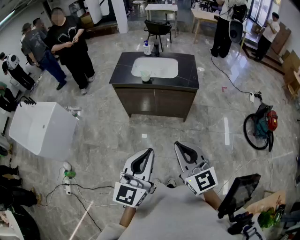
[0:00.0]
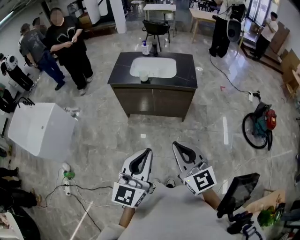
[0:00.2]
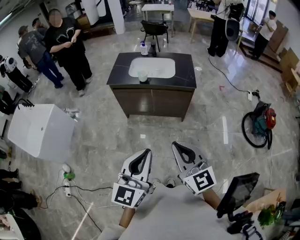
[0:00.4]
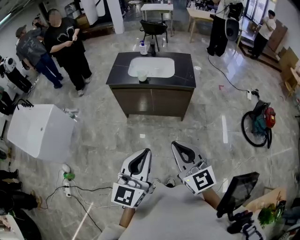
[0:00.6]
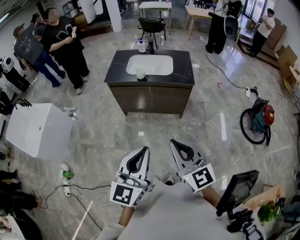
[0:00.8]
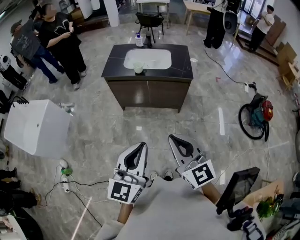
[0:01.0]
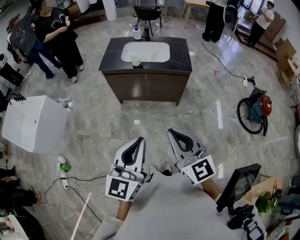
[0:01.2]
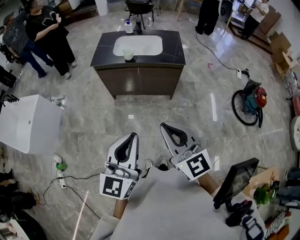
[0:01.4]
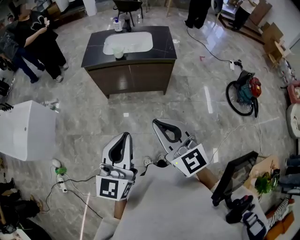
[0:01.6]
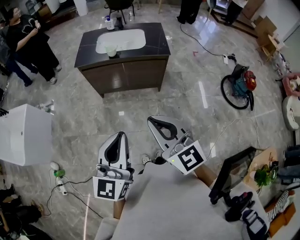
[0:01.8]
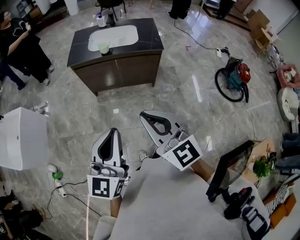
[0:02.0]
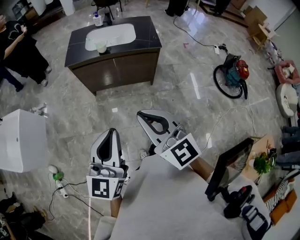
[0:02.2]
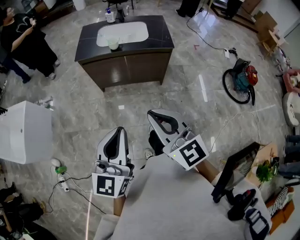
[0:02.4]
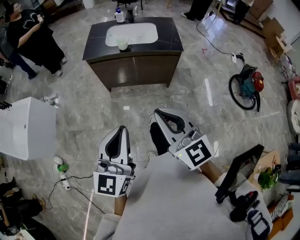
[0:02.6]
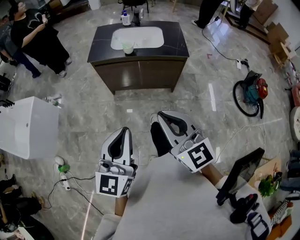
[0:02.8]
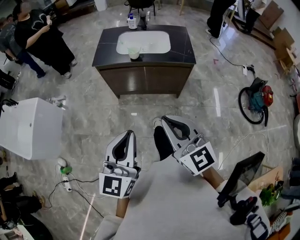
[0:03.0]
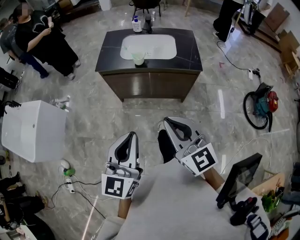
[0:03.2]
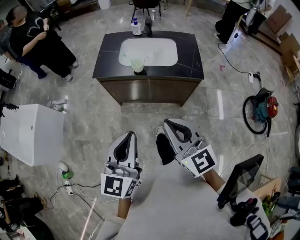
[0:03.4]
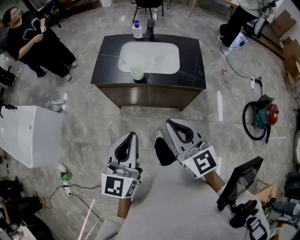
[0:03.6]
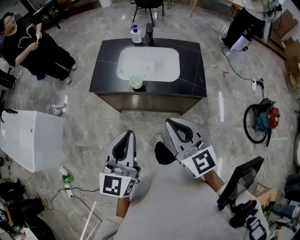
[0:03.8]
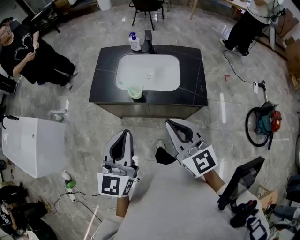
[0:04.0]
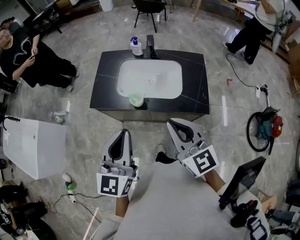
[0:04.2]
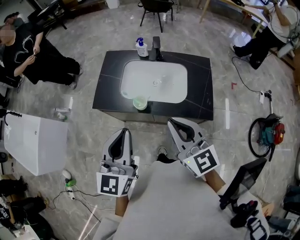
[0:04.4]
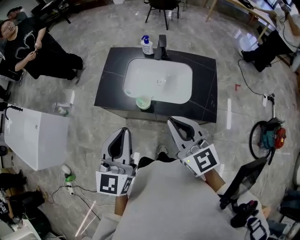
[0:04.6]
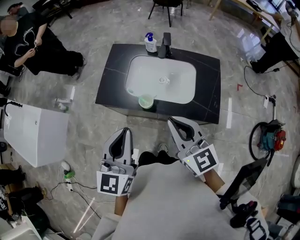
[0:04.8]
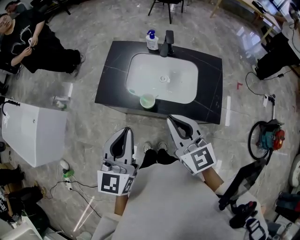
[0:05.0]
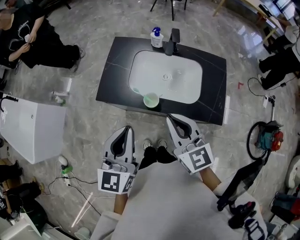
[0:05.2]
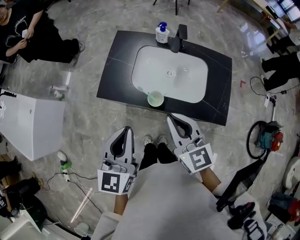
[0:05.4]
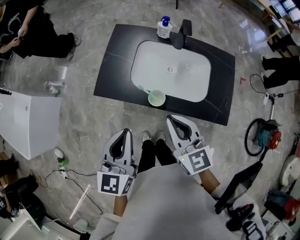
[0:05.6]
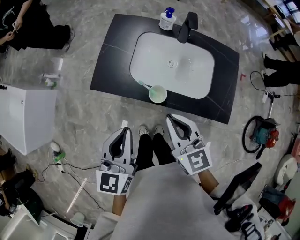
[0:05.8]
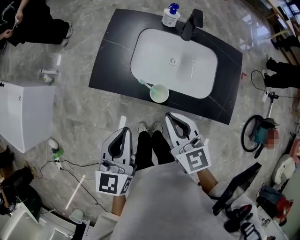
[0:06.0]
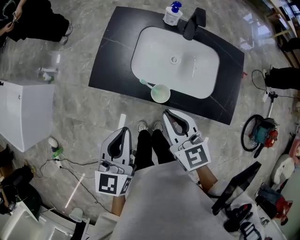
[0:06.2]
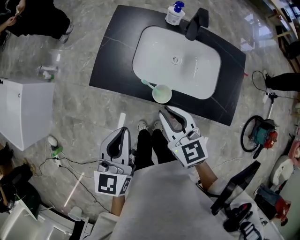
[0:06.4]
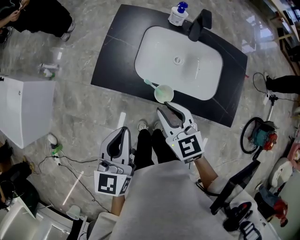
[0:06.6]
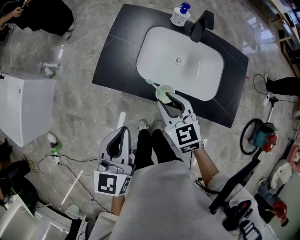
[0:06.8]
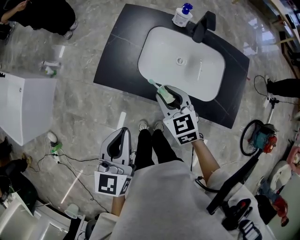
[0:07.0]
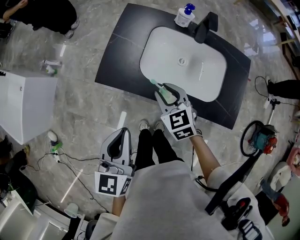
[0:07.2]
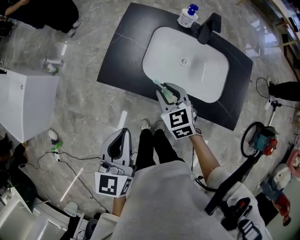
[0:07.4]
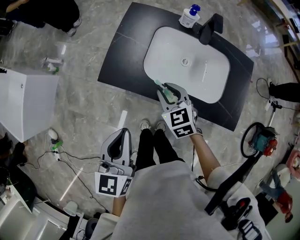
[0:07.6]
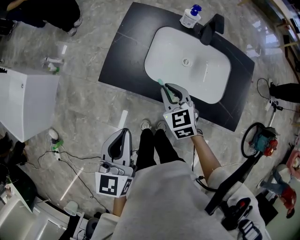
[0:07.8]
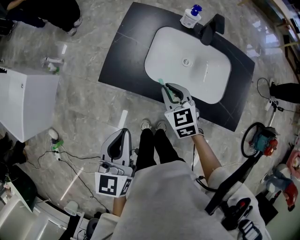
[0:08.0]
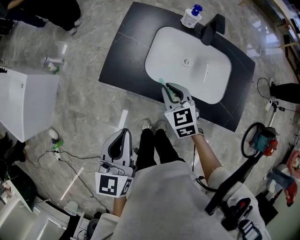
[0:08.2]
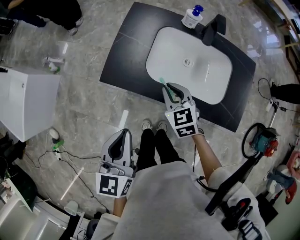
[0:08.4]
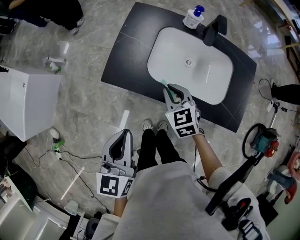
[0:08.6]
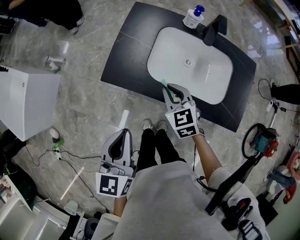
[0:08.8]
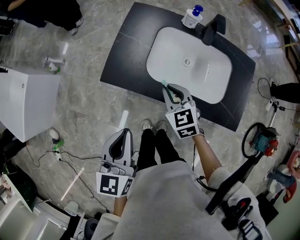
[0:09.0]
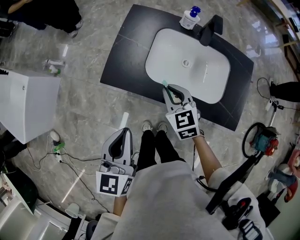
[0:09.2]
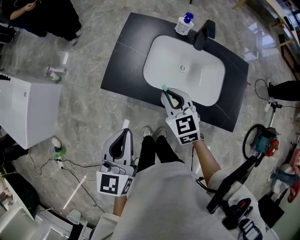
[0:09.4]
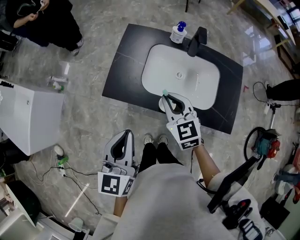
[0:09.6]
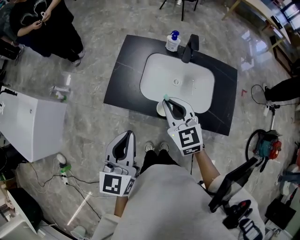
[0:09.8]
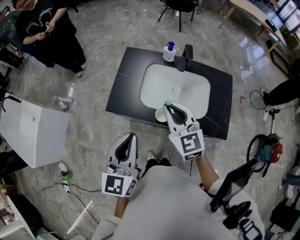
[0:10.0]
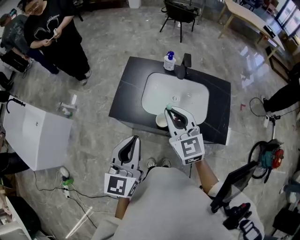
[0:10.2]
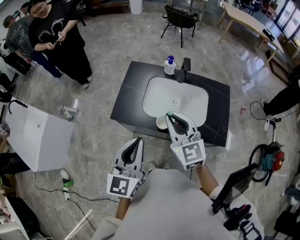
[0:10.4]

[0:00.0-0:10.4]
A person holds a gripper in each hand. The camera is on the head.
0:00.0 to 0:01.4: The grippers stay close to where they were, moving slightly.
0:01.4 to 0:03.0: The left gripper shifts approximately 10 cm forward and to the left; the right gripper moves forward, about 5 cm.
0:03.0 to 0:04.4: The grippers both shift forward by roughly 35 cm.
0:04.4 to 0:06.0: The two grippers go roughly 15 cm downward, to the left and forward. The left gripper turns by some 20 degrees.
0:06.0 to 0:07.4: The right gripper travels downward and forward by about 15 cm, swivels some 20 degrees, and opens.
0:07.4 to 0:09.0: The two grippers keep their place.
0:09.0 to 0:10.4: The right gripper shifts approximately 20 cm upward, and turns by roughly 30 degrees. Meanwhile the left gripper heads upward and to the right, covering roughly 10 cm, and rotates some 20 degrees.

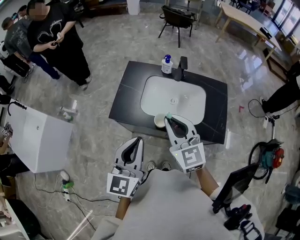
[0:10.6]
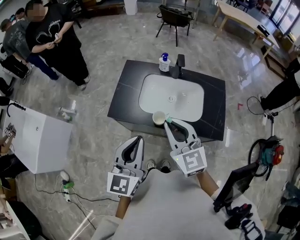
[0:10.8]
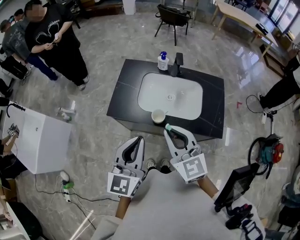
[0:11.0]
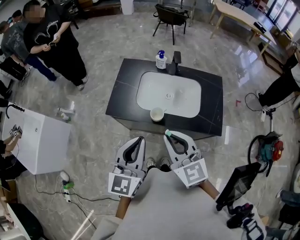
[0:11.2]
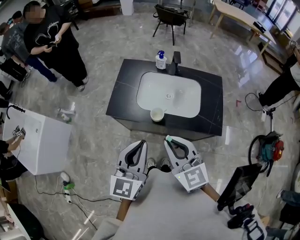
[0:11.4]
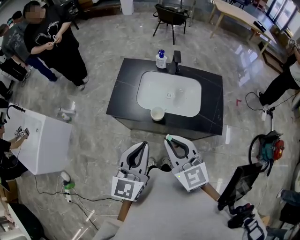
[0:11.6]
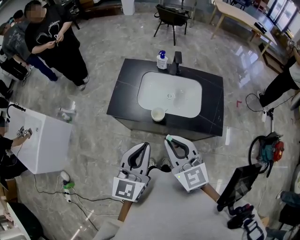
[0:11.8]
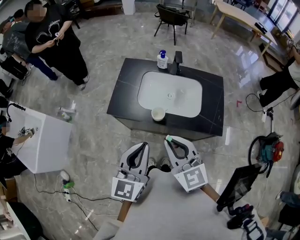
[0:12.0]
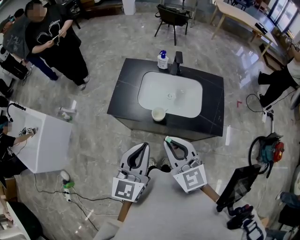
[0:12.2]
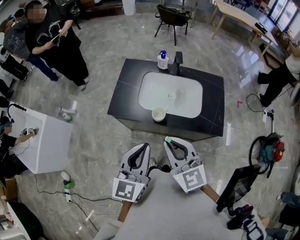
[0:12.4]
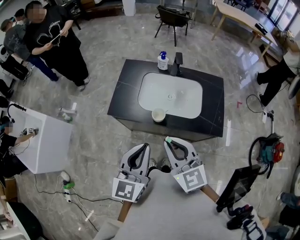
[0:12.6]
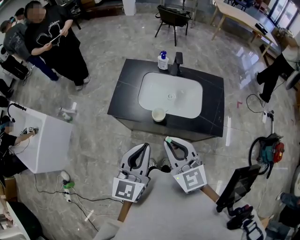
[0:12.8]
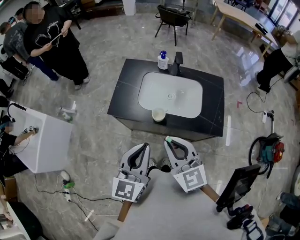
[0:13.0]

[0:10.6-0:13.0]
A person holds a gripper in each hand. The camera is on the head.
0:10.6 to 0:11.8: The right gripper goes roughly 10 cm backward. Meanwhile the left gripper changes place by approximately 5 cm.
0:11.8 to 0:13.0: The grippers stay close to where they were, moving slightly.

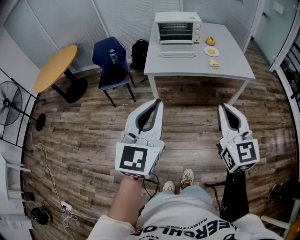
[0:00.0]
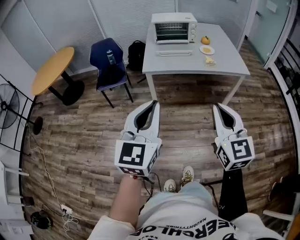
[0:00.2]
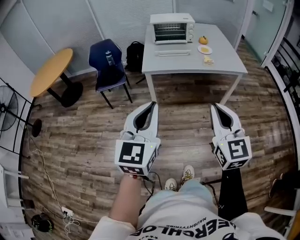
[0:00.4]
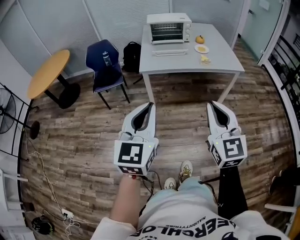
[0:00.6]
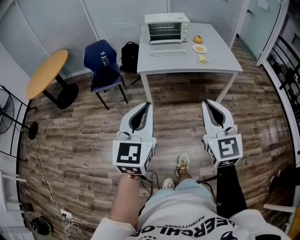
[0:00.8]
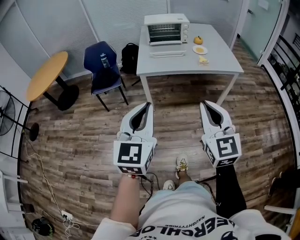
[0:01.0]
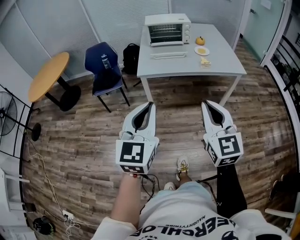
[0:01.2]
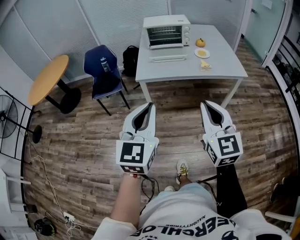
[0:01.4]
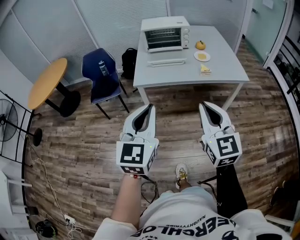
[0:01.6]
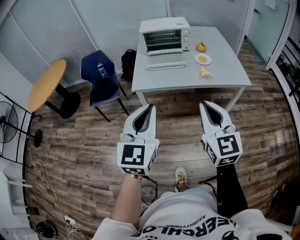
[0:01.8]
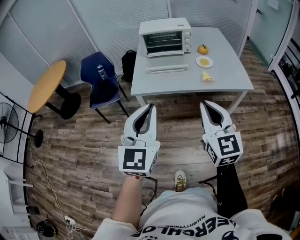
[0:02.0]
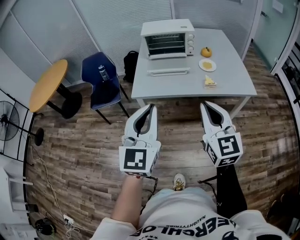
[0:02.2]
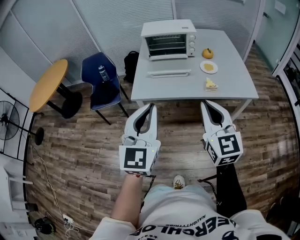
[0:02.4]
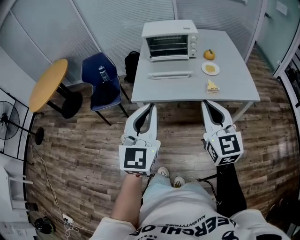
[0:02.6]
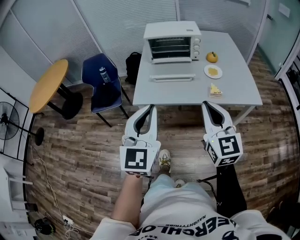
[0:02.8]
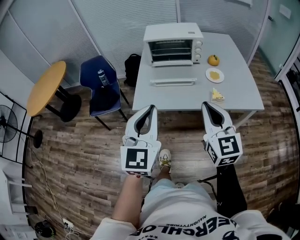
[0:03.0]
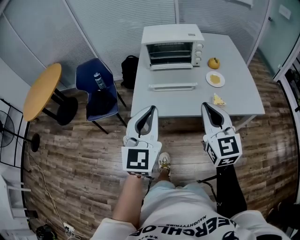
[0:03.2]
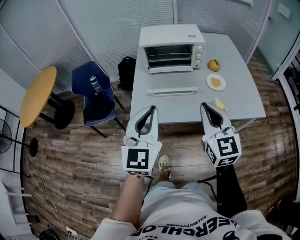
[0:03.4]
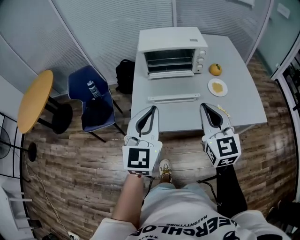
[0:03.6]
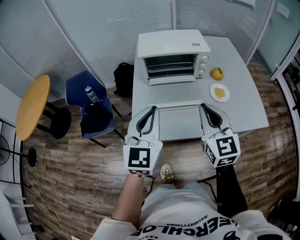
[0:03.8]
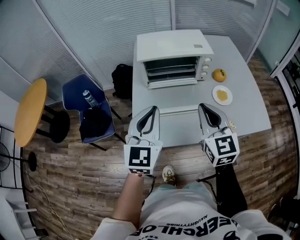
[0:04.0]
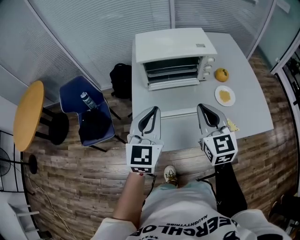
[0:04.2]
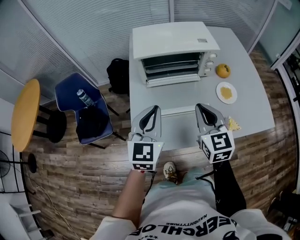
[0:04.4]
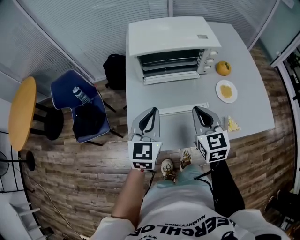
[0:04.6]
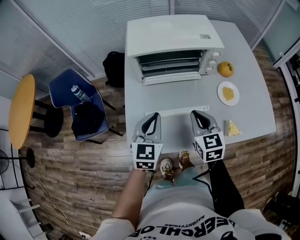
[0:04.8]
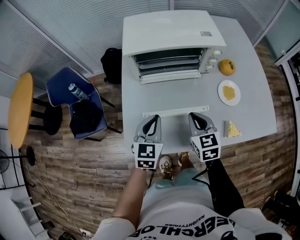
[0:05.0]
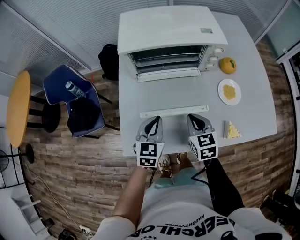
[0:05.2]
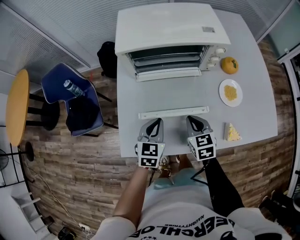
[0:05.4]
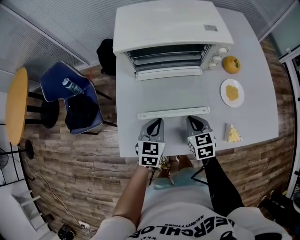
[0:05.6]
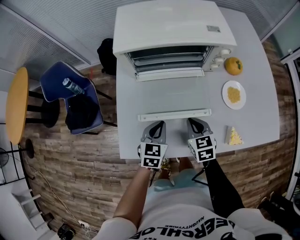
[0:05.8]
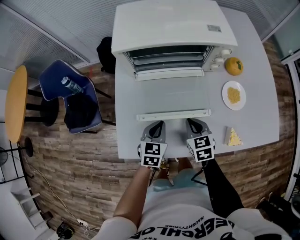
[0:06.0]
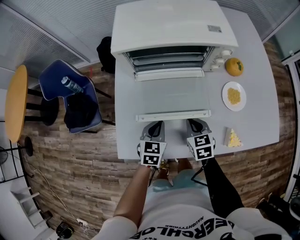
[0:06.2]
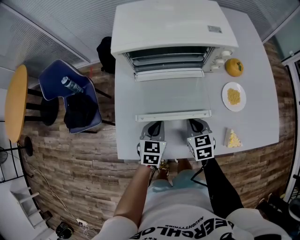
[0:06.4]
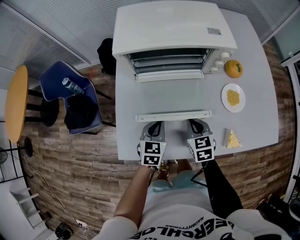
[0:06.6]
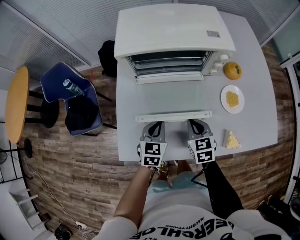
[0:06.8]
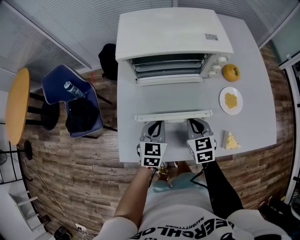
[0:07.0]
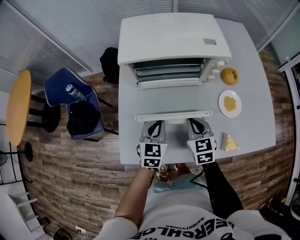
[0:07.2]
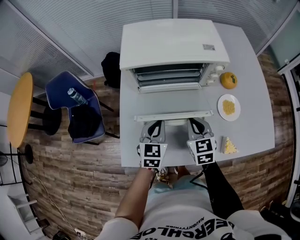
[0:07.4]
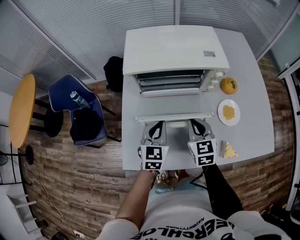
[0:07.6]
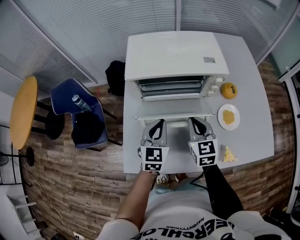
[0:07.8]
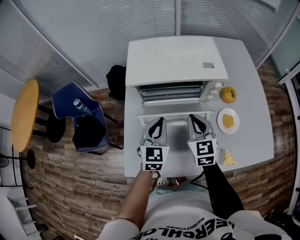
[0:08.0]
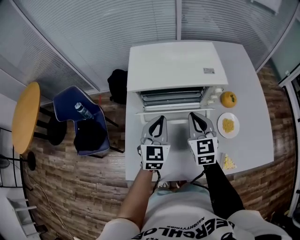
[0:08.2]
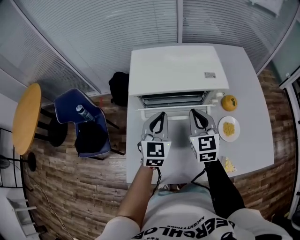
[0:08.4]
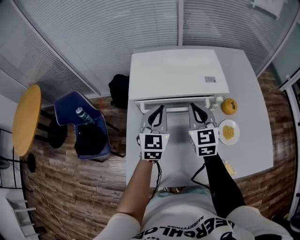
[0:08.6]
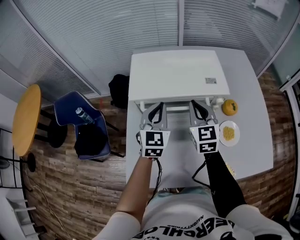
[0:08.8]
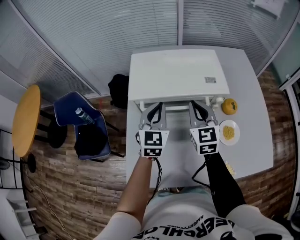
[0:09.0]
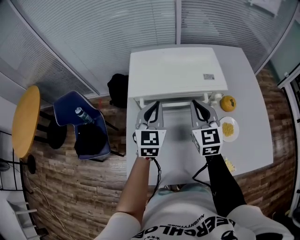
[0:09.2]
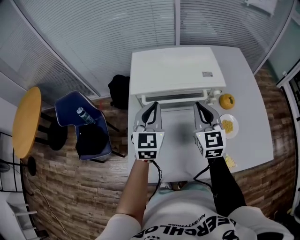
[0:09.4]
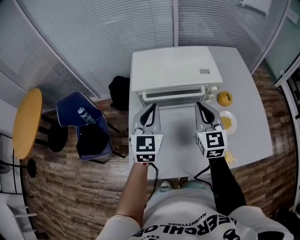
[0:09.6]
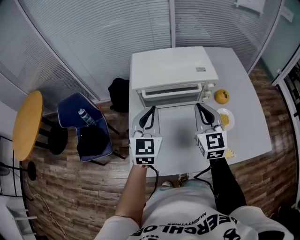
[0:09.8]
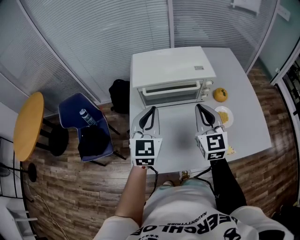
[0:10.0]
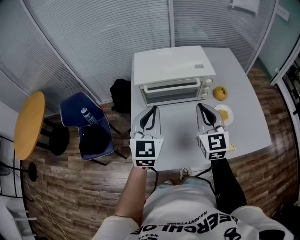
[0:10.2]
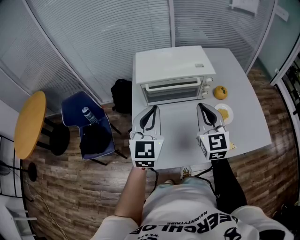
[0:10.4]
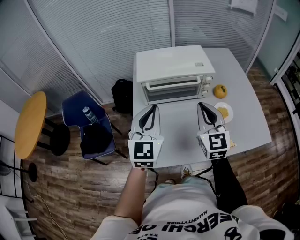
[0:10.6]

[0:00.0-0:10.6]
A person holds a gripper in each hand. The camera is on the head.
0:00.0 to 0:01.6: The two grippers go roughly 10 cm forward.
0:01.6 to 0:03.0: The two grippers go roughly 25 cm forward.
0:03.0 to 0:04.6: The two grippers go some 35 cm forward and downward. The right gripper turns by about 20 degrees.
0:04.6 to 0:06.0: The grippers both shift downward by some 20 cm. The left gripper swivels some 30 degrees. The right gripper rotates roughly 20 degrees.
0:06.0 to 0:07.6: Both grippers travel together upward and forward, roughly 15 cm.
0:07.6 to 0:09.0: The two grippers go about 20 cm forward and upward.
0:09.0 to 0:10.6: The grippers both shift backward and upward by about 20 cm.
